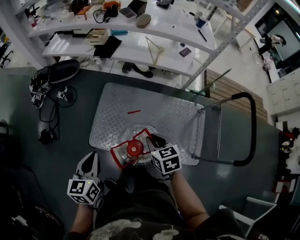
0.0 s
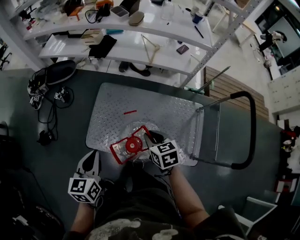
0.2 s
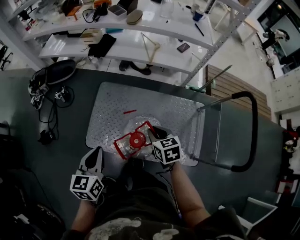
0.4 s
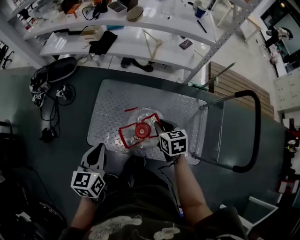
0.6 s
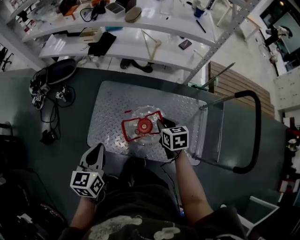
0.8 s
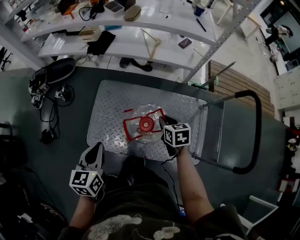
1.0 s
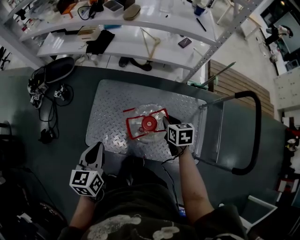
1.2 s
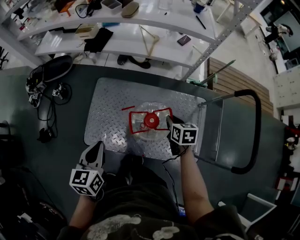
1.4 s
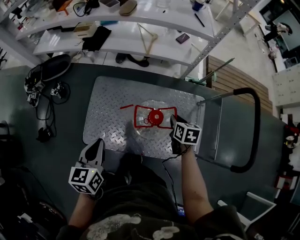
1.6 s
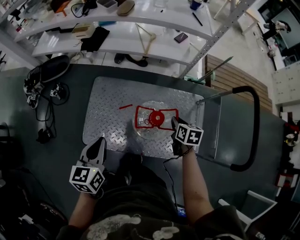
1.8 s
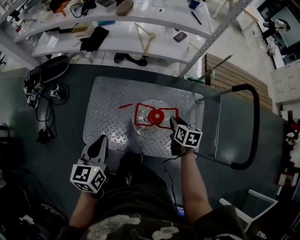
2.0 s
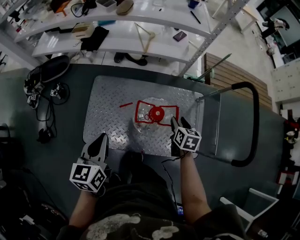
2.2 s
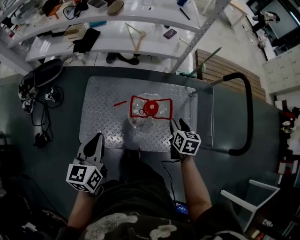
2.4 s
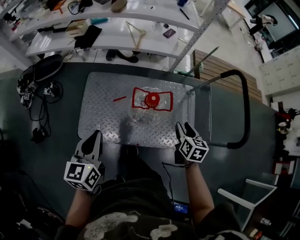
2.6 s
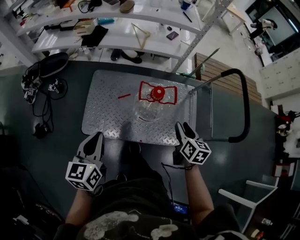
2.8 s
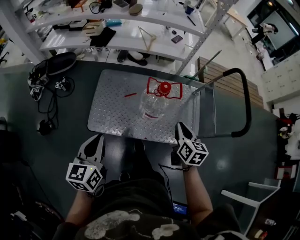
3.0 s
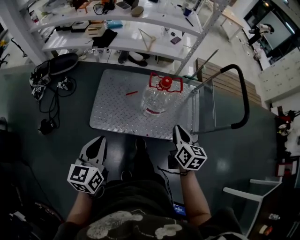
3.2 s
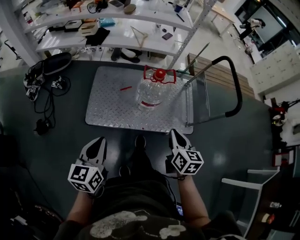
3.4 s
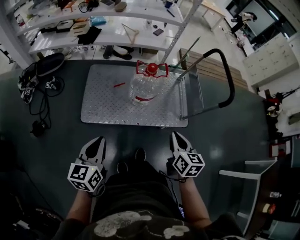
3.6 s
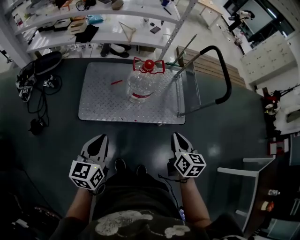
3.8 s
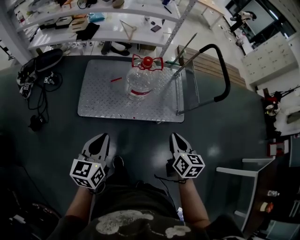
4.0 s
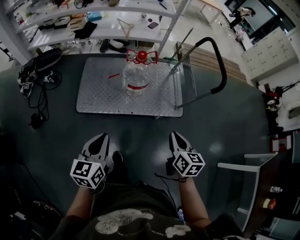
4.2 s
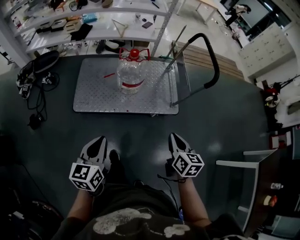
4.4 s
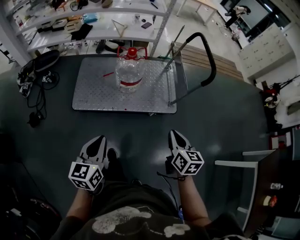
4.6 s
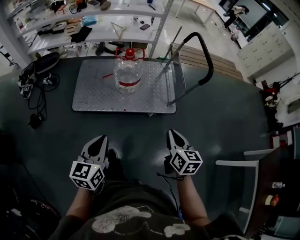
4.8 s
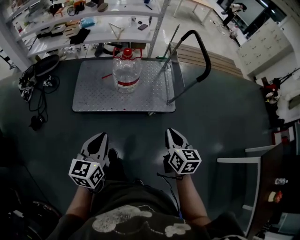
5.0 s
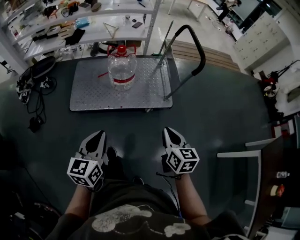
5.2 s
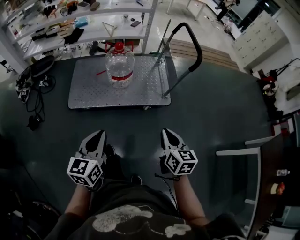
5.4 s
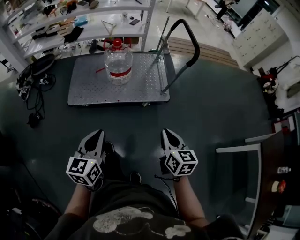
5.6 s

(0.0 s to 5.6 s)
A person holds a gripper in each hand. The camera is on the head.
0.0 s - 1.4 s: The right gripper travels to the right, forward and downward by some 25 cm, and rotates approximately 20 degrees; the left gripper moves to the right and forward, roughly 15 cm.
1.4 s - 2.8 s: The left gripper heads backward, covering about 10 cm, while the right gripper shifts about 20 cm backward and upward, swivels approximately 20 degrees, and opens its fingers.
2.8 s - 4.2 s: Both grippers travel together backward, some 30 cm. The right gripper closes its fingers.
4.2 s - 5.6 s: The right gripper travels backward and to the right by about 20 cm. Meanwhile the left gripper moves to the right and backward, about 20 cm.

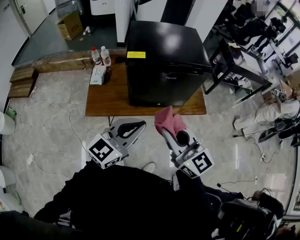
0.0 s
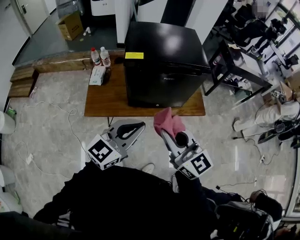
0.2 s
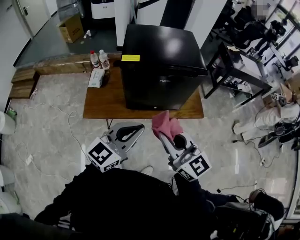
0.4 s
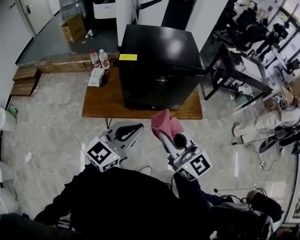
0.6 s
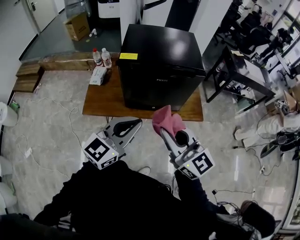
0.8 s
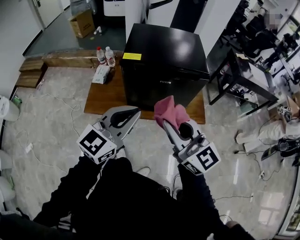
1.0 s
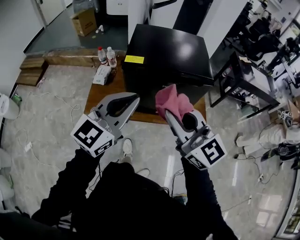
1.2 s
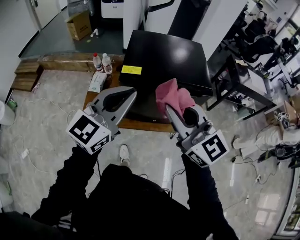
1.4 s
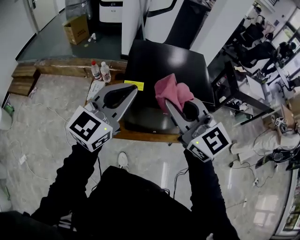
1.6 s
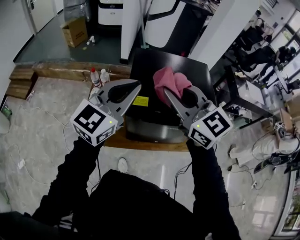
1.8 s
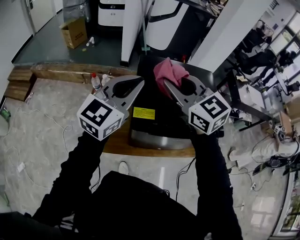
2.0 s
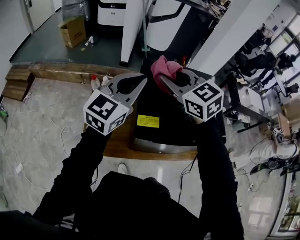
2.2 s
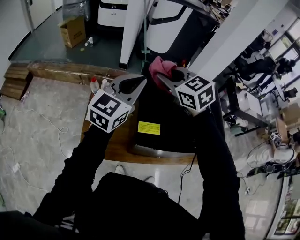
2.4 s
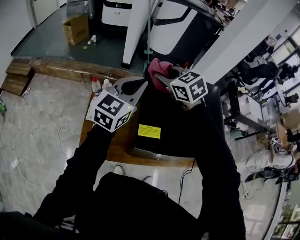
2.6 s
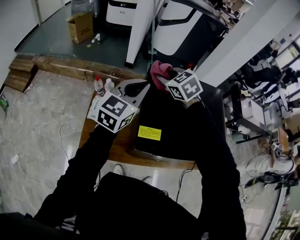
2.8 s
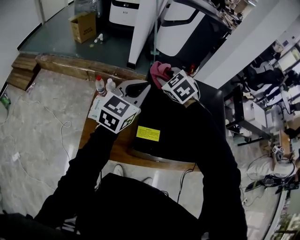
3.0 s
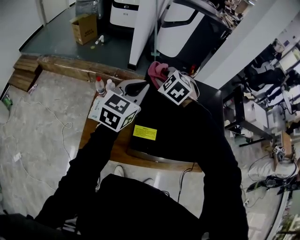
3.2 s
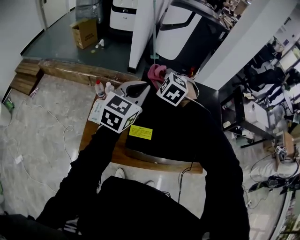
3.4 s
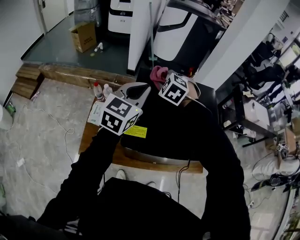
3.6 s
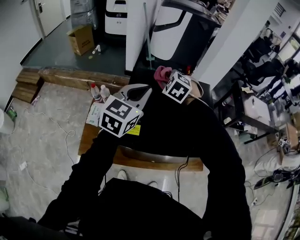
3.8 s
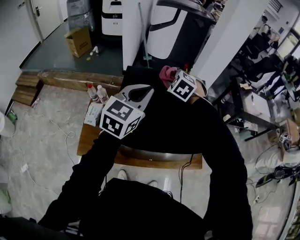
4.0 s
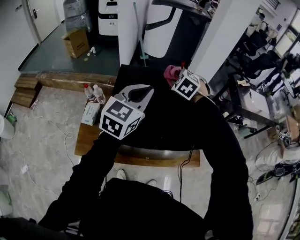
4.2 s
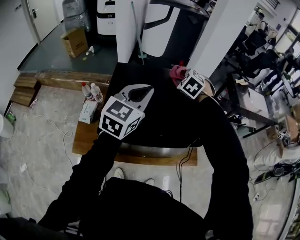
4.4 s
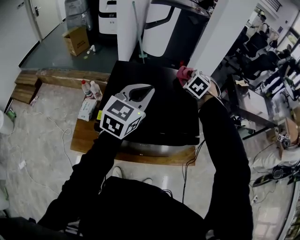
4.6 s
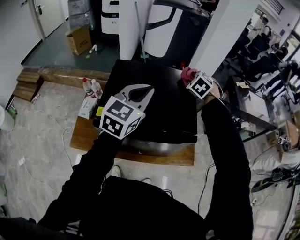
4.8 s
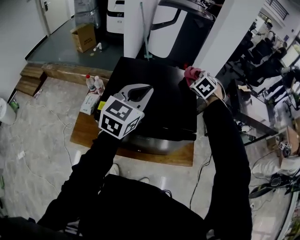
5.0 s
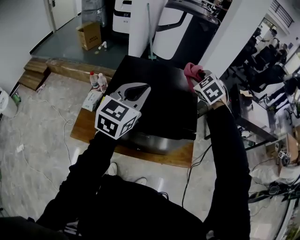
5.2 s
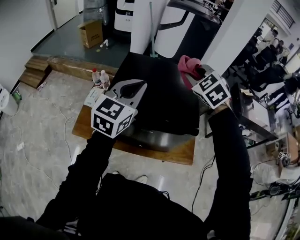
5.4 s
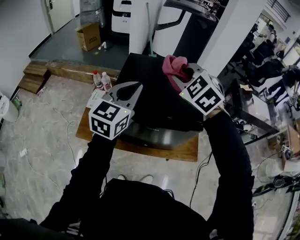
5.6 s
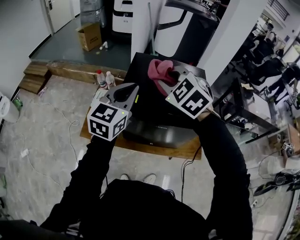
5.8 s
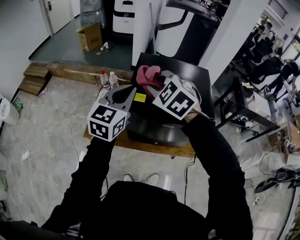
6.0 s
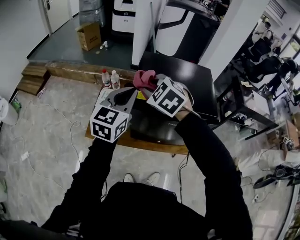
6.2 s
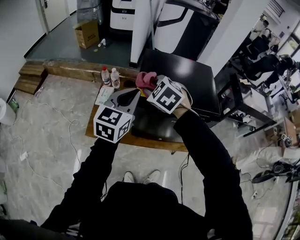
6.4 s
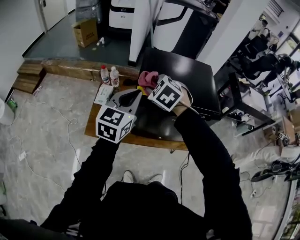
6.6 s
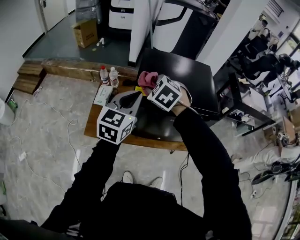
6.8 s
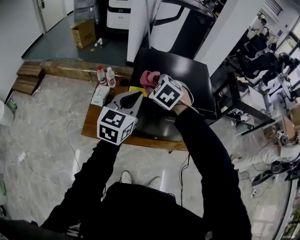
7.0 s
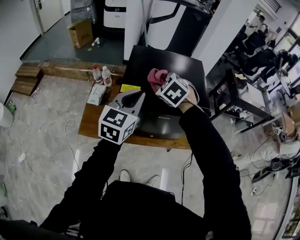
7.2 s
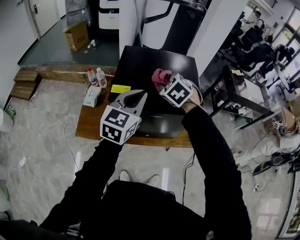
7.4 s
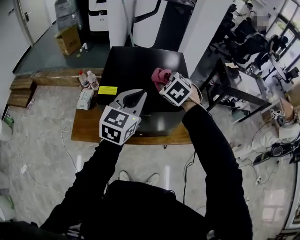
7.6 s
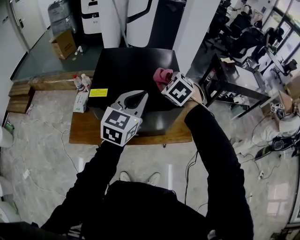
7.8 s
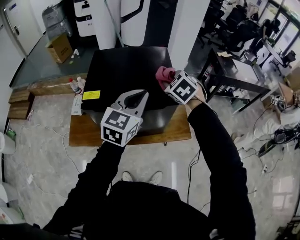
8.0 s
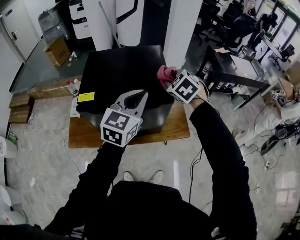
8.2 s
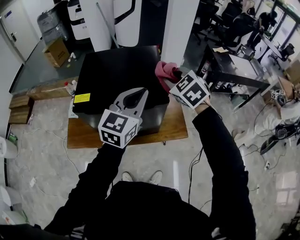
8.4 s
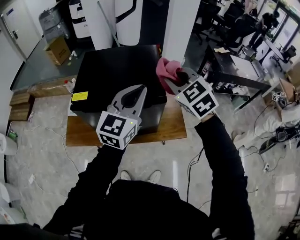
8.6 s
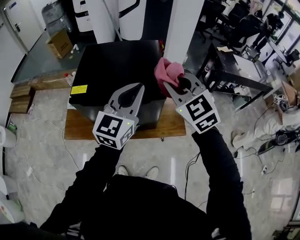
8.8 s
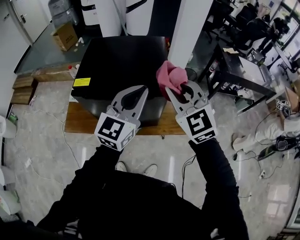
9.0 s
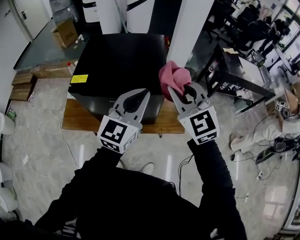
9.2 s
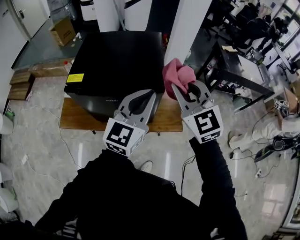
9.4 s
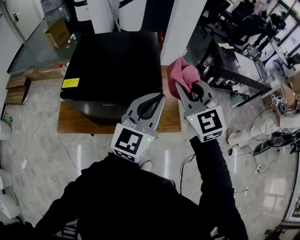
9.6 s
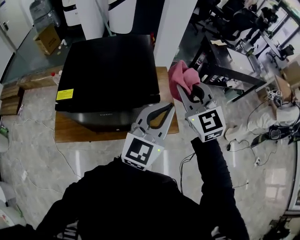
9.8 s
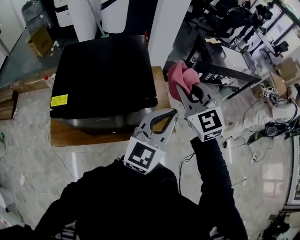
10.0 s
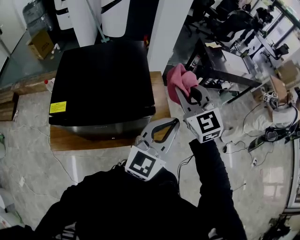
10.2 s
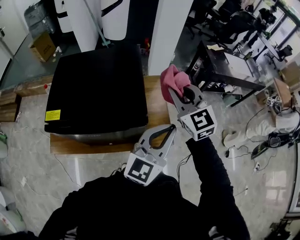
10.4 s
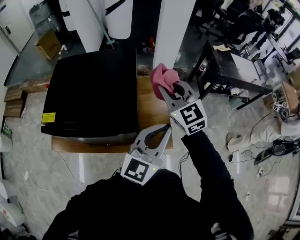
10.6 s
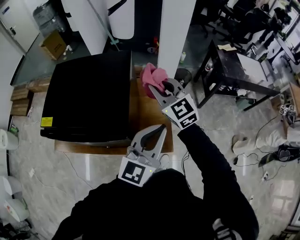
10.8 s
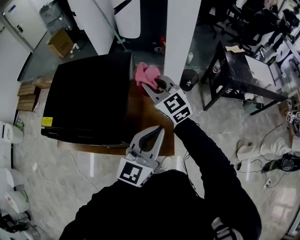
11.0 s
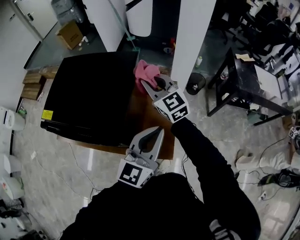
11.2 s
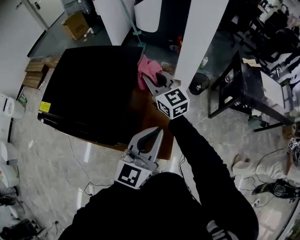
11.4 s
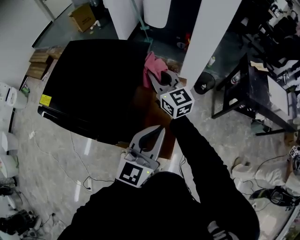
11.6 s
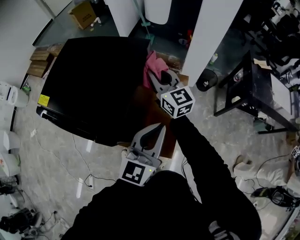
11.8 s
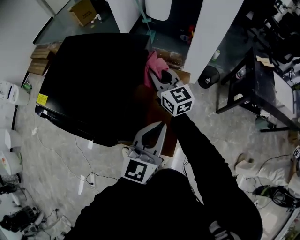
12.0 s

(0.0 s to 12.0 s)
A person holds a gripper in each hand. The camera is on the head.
0.0 s - 1.6 s: The two grippers go about 25 cm forward and upward.
1.6 s - 3.0 s: Both grippers travel together forward, approximately 35 cm. The right gripper points its fingers roughly 40 degrees further downward.
3.0 s - 4.4 s: The two grippers go about 25 cm to the right.
4.4 s - 6.0 s: The left gripper heads to the left and backward, covering approximately 20 cm, while the right gripper heads backward and to the left, covering roughly 35 cm, and turns by roughly 20 degrees.
6.0 s - 7.6 s: The left gripper heads to the right, covering about 15 cm. Meanwhile the right gripper moves to the right and downward, about 20 cm, and turns by about 20 degrees.
7.6 s - 9.0 s: The left gripper travels to the right by some 15 cm; the right gripper shifts some 20 cm to the right, backward and upward, and points its fingers approximately 30 degrees further upward.
9.0 s - 10.4 s: The right gripper moves forward and to the right, approximately 20 cm. Meanwhile the left gripper moves to the right, approximately 15 cm.
10.4 s - 12.0 s: The right gripper moves roughly 25 cm, and changes its angle by about 40 degrees. The left gripper shifts by some 20 cm, and turns by about 30 degrees.

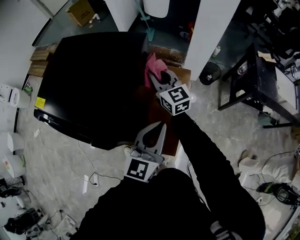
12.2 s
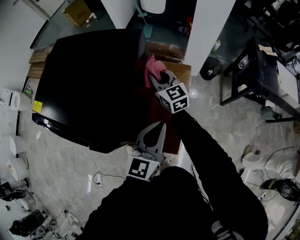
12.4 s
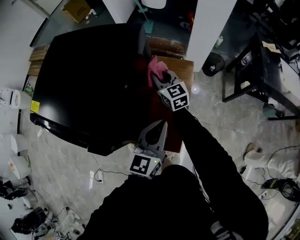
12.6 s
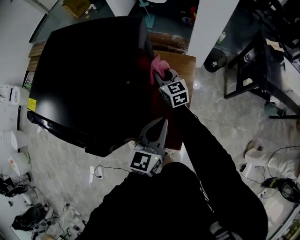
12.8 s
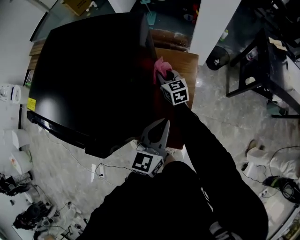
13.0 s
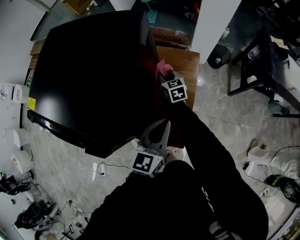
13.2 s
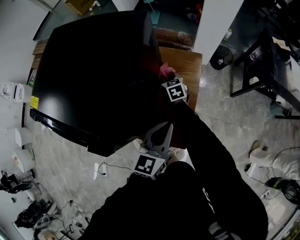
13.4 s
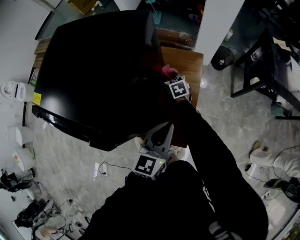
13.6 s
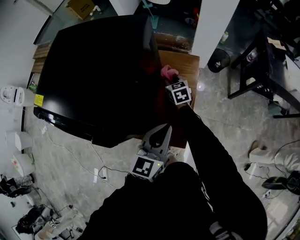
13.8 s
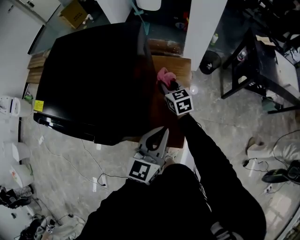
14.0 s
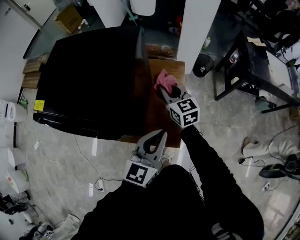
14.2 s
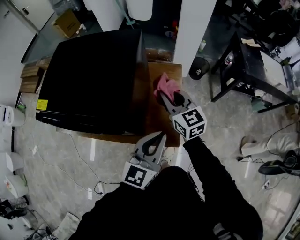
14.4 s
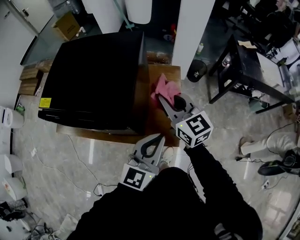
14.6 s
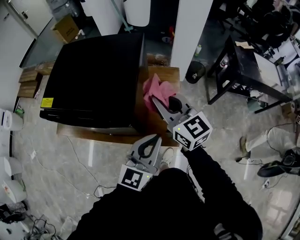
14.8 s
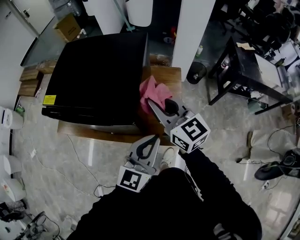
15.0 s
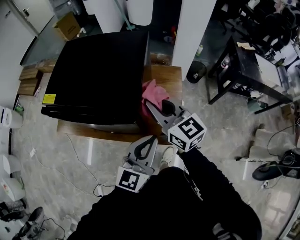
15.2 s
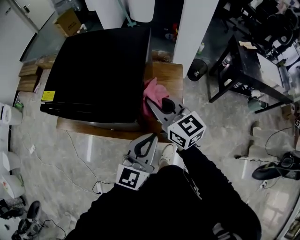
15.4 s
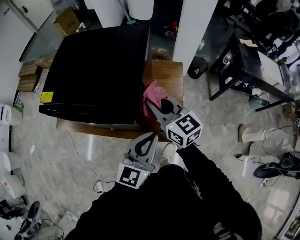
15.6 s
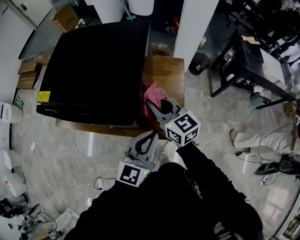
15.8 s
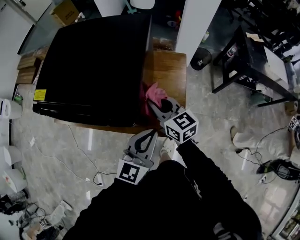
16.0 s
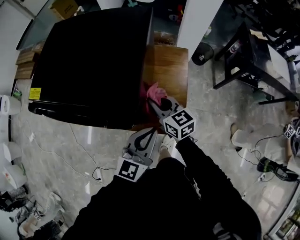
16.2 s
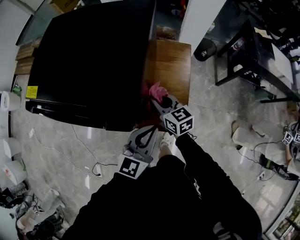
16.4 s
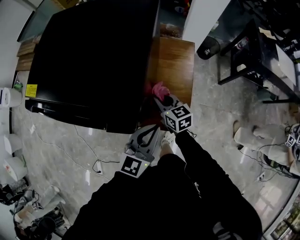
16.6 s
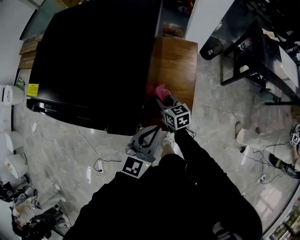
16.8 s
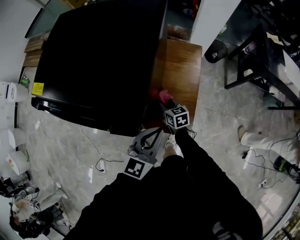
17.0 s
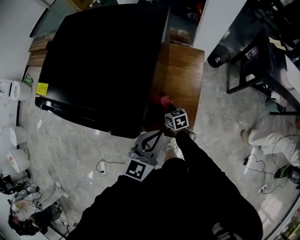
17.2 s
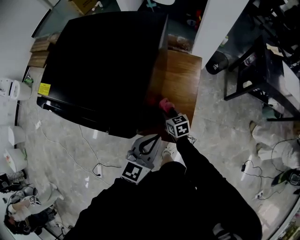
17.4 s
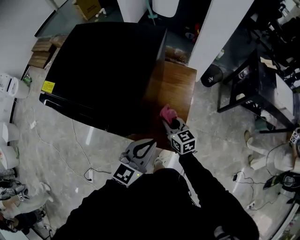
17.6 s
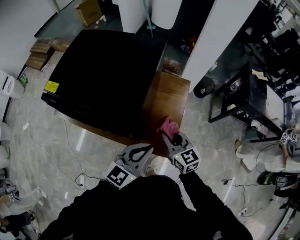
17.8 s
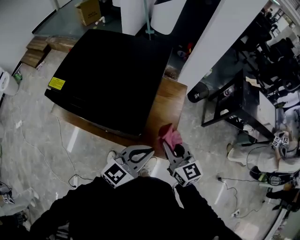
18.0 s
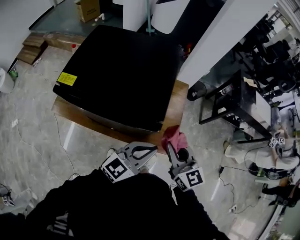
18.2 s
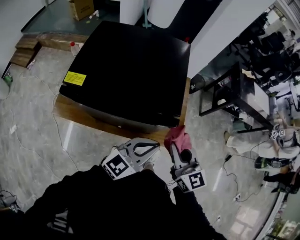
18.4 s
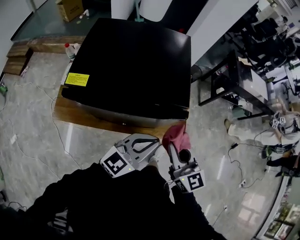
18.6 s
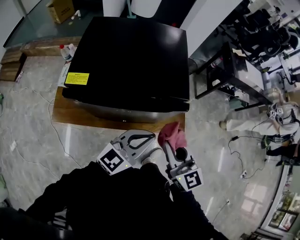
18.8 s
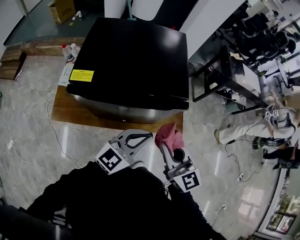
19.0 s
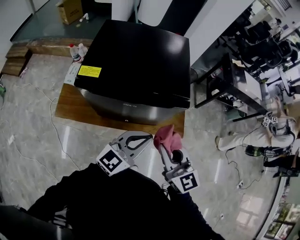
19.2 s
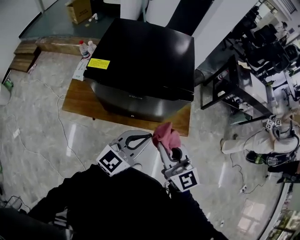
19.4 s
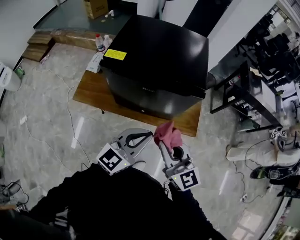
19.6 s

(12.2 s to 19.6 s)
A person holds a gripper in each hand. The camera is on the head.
12.2 s - 13.6 s: The right gripper goes roughly 30 cm downward, and tilts its fingers about 40 degrees downward. The left gripper heads downward, covering roughly 10 cm.
13.6 s - 15.2 s: The left gripper moves upward, backward and to the left, about 20 cm. Meanwhile the right gripper heads upward and backward, covering roughly 40 cm, and tilts its fingers approximately 40 degrees upward.
15.2 s - 16.6 s: The right gripper heads downward, covering about 30 cm, and turns by about 30 degrees. Meanwhile the left gripper heads downward, covering some 15 cm.
16.6 s - 18.2 s: The left gripper shifts about 15 cm upward and to the left, and turns by about 20 degrees; the right gripper is displaced upward and backward by about 30 cm, and rotates some 20 degrees.
18.2 s - 19.6 s: Both grippers travel together backward and to the left, about 25 cm.
